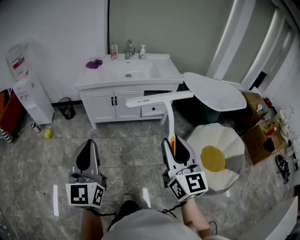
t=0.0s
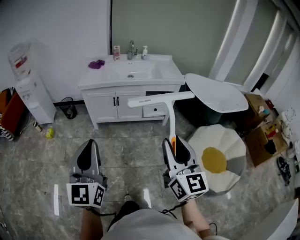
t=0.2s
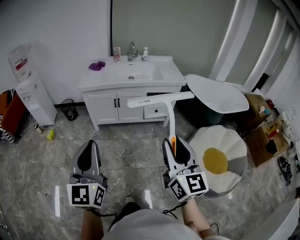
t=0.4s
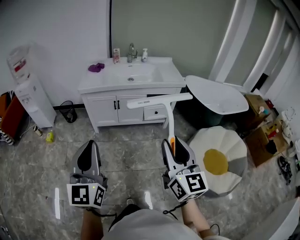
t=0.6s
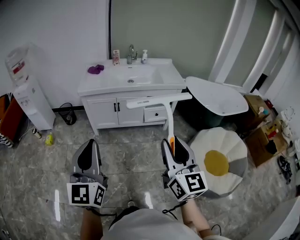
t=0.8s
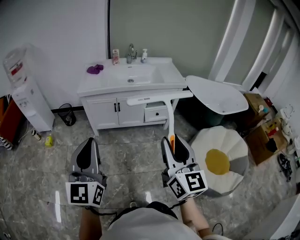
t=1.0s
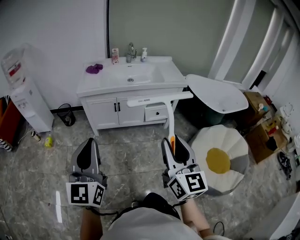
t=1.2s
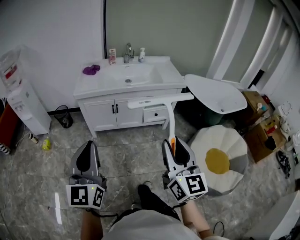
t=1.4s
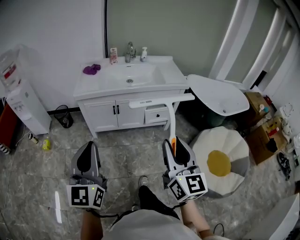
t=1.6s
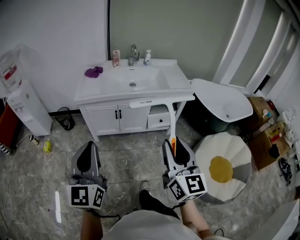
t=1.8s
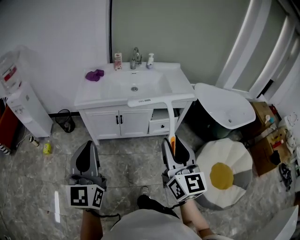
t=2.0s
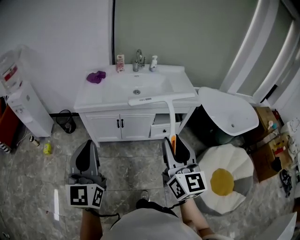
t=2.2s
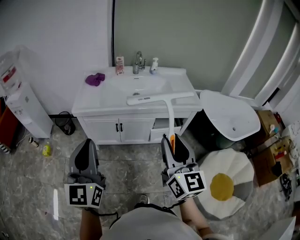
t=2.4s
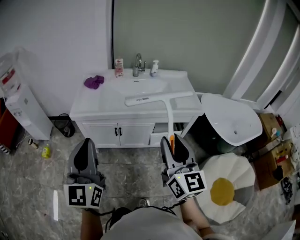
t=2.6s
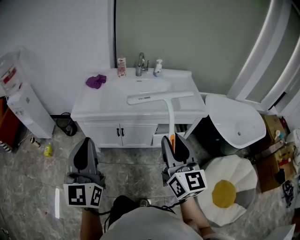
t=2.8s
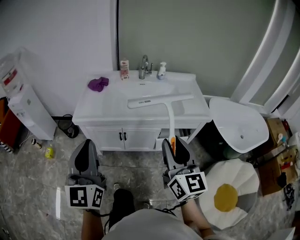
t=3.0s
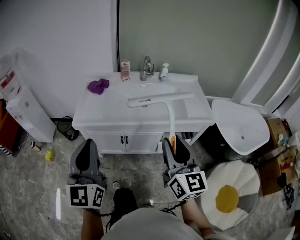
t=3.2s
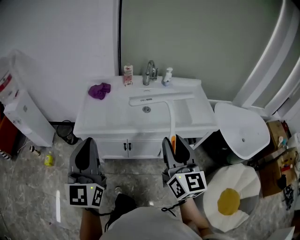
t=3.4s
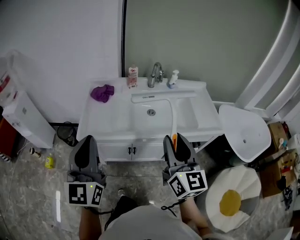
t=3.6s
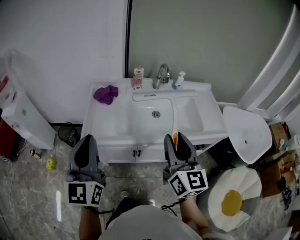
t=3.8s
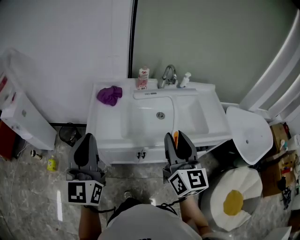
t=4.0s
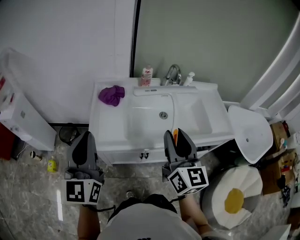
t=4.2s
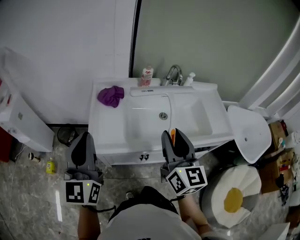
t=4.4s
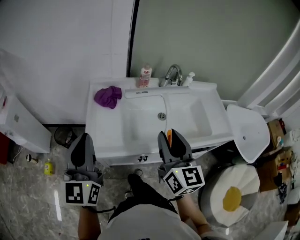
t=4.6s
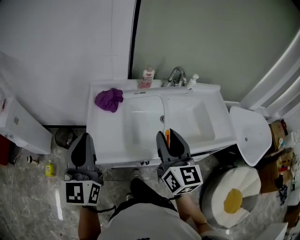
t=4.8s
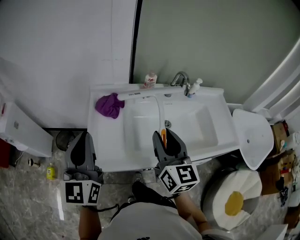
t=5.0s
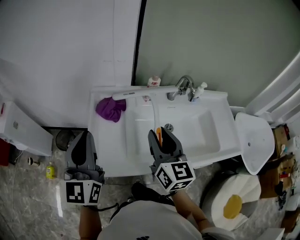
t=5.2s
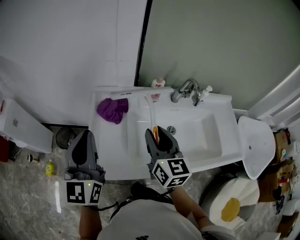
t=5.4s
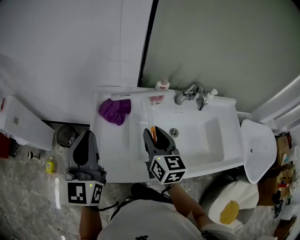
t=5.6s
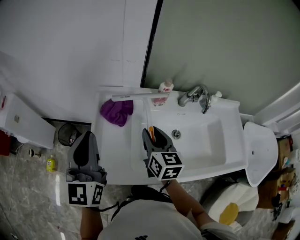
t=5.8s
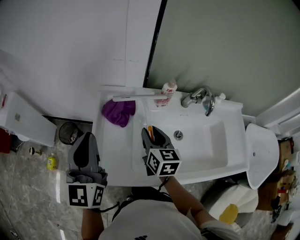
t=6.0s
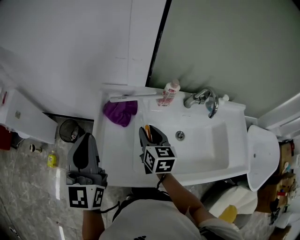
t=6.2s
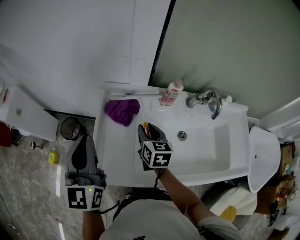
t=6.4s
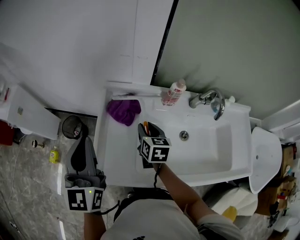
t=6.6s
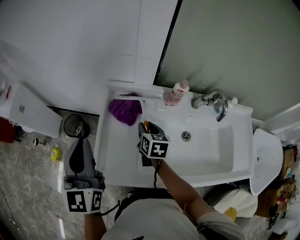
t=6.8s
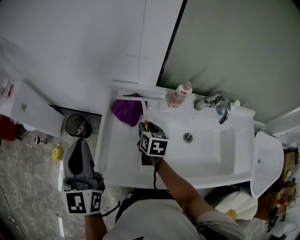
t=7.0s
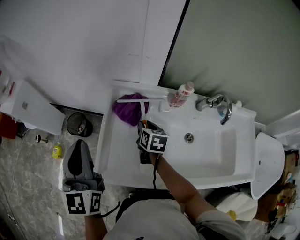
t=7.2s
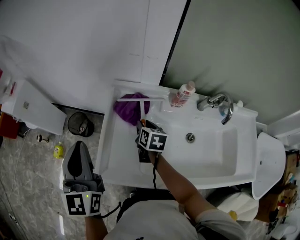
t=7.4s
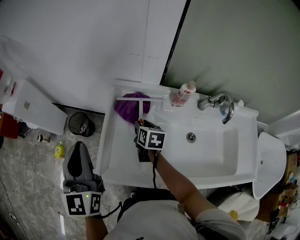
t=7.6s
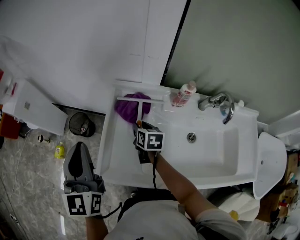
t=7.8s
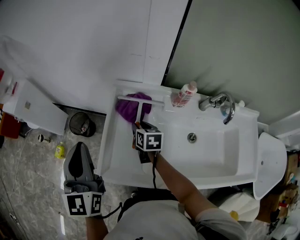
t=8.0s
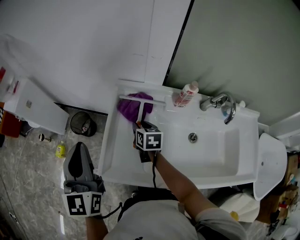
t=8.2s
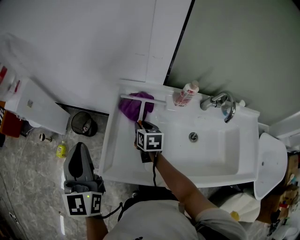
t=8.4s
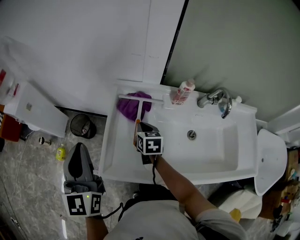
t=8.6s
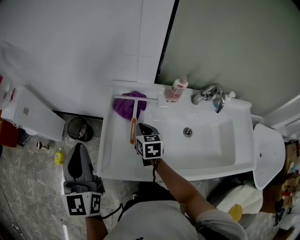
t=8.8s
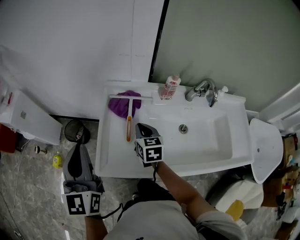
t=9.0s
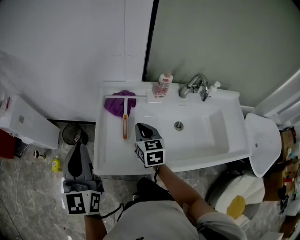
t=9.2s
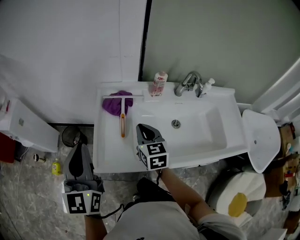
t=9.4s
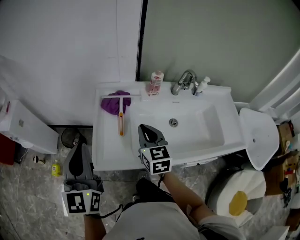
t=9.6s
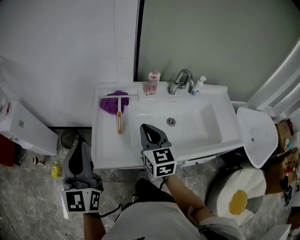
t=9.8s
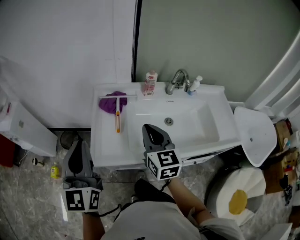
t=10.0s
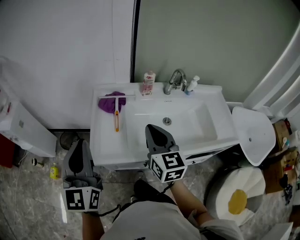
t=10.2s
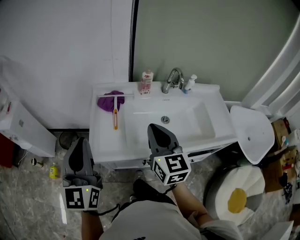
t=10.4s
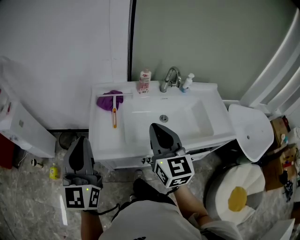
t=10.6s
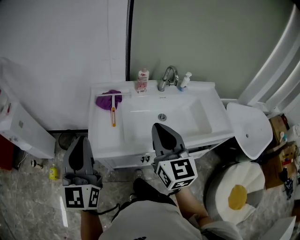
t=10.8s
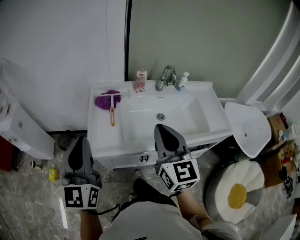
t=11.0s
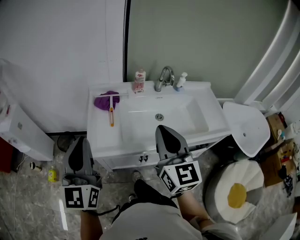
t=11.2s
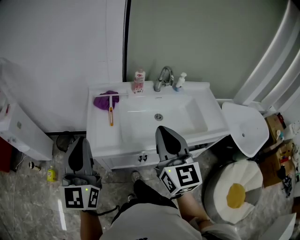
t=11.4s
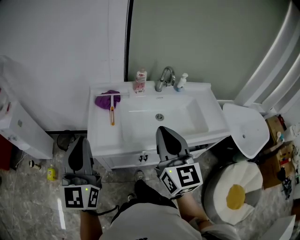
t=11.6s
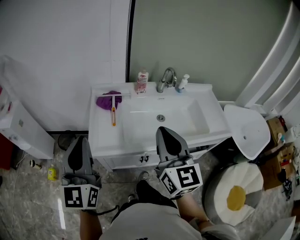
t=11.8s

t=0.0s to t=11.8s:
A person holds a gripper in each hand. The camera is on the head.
t=0.0s to t=1.4s: The two grippers go some 10 cm forward.
t=1.4s to t=3.0s: The grippers both shift forward by approximately 35 cm.
t=3.0s to t=4.4s: Both grippers move forward and to the left, approximately 30 cm.
t=4.4s to t=6.0s: The right gripper travels forward and downward by some 30 cm, and rotates approximately 30 degrees, while the left gripper travels forward by some 20 cm.
t=6.0s to t=7.4s: The left gripper moves to the left, some 5 cm, while the right gripper travels downward, forward and to the left by approximately 15 cm, and rotates approximately 20 degrees.
t=7.4s to t=8.8s: The right gripper shifts by about 5 cm, and closes.
t=8.8s to t=10.4s: The left gripper shifts roughly 15 cm backward and to the right; the right gripper goes approximately 30 cm upward and backward, and swivels roughly 30 degrees.
t=10.4s to t=11.8s: The left gripper shifts by about 5 cm. Meanwhile the right gripper is displaced backward and upward by approximately 10 cm.

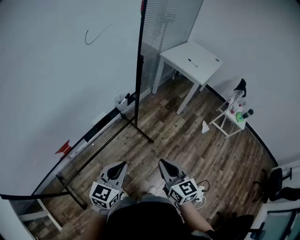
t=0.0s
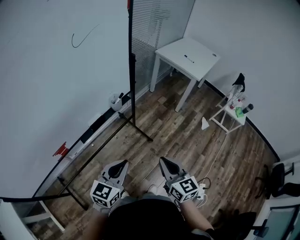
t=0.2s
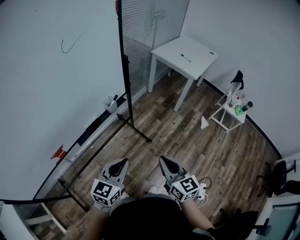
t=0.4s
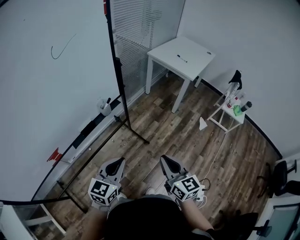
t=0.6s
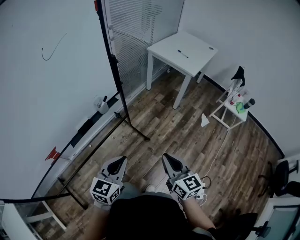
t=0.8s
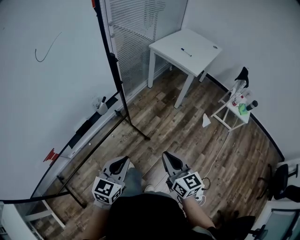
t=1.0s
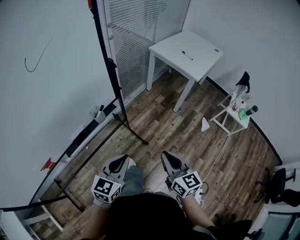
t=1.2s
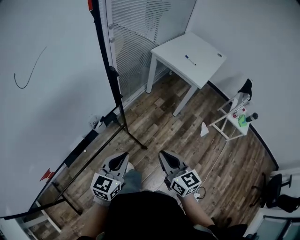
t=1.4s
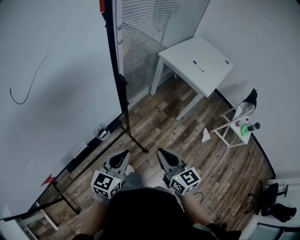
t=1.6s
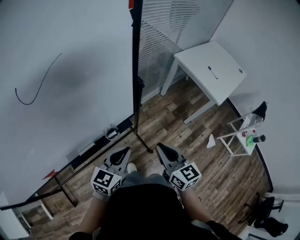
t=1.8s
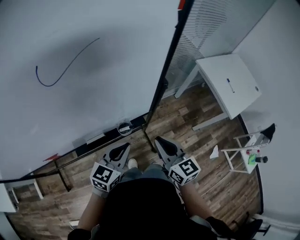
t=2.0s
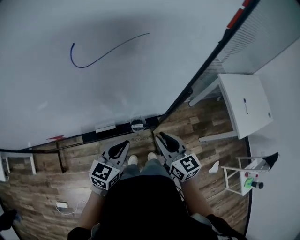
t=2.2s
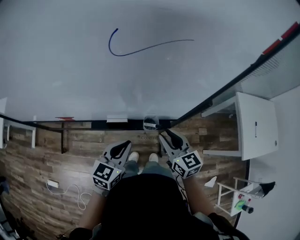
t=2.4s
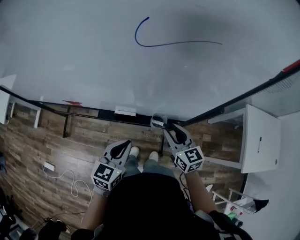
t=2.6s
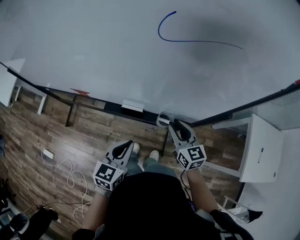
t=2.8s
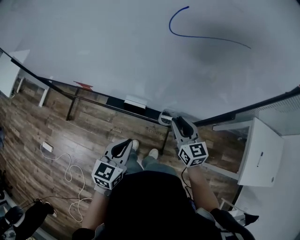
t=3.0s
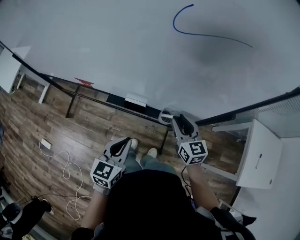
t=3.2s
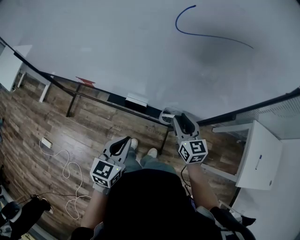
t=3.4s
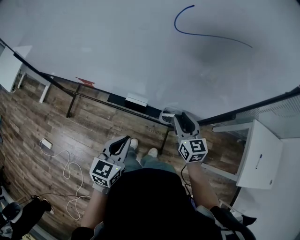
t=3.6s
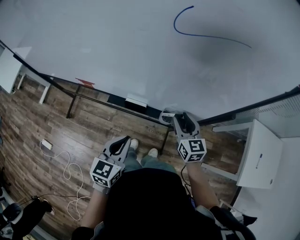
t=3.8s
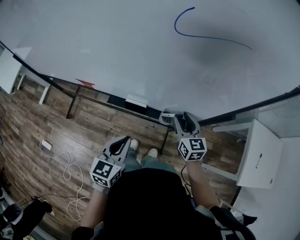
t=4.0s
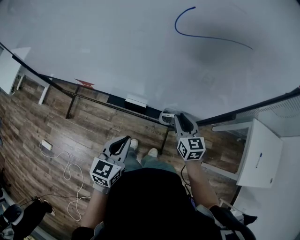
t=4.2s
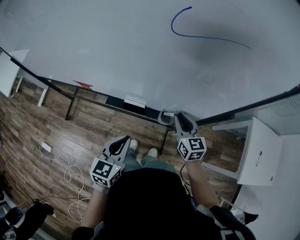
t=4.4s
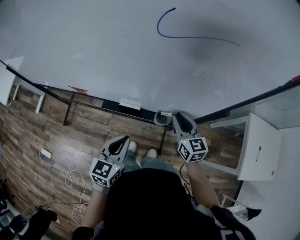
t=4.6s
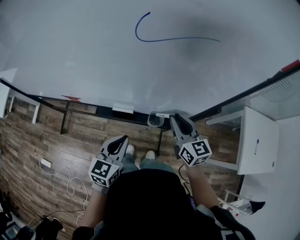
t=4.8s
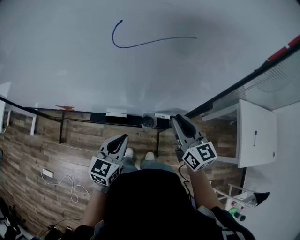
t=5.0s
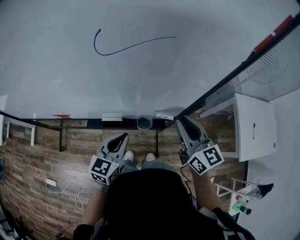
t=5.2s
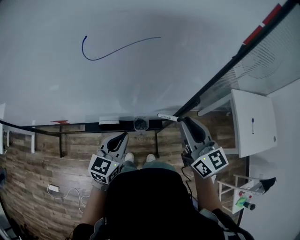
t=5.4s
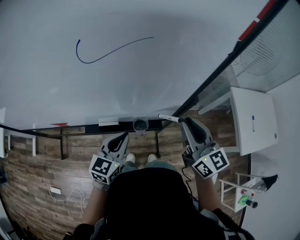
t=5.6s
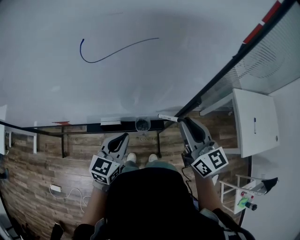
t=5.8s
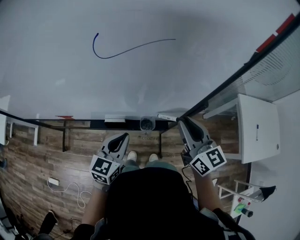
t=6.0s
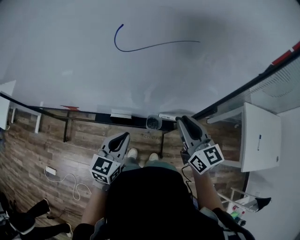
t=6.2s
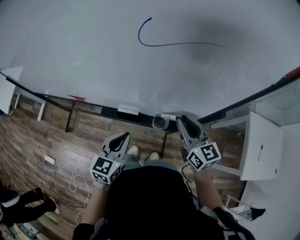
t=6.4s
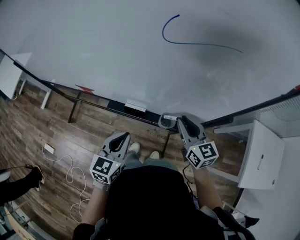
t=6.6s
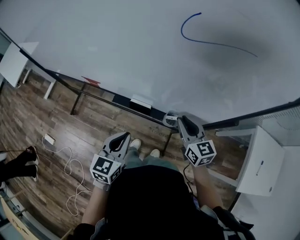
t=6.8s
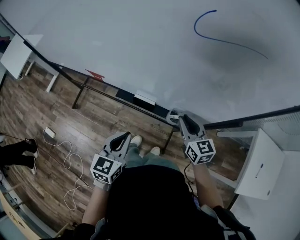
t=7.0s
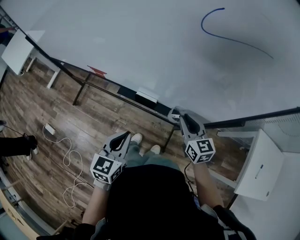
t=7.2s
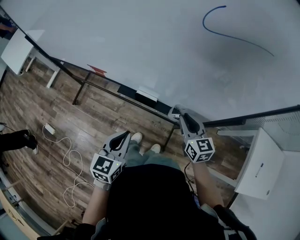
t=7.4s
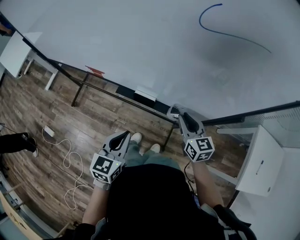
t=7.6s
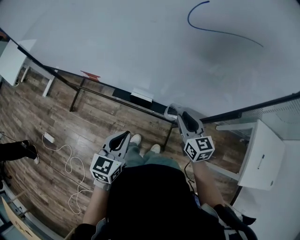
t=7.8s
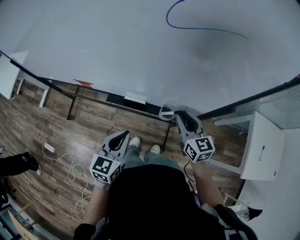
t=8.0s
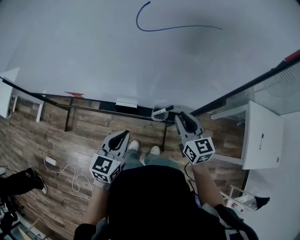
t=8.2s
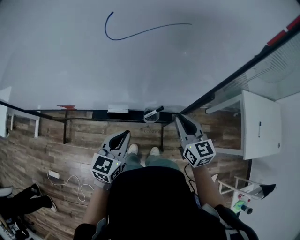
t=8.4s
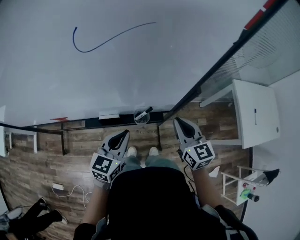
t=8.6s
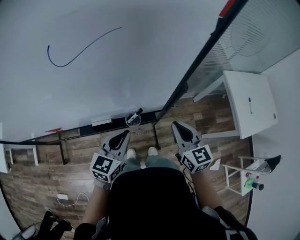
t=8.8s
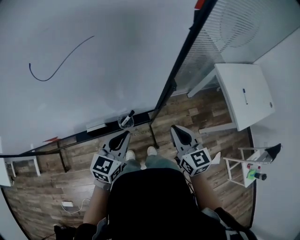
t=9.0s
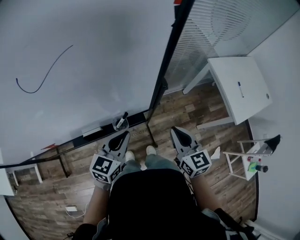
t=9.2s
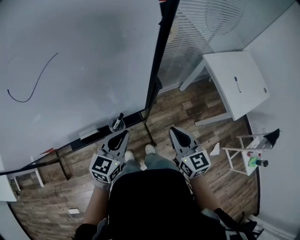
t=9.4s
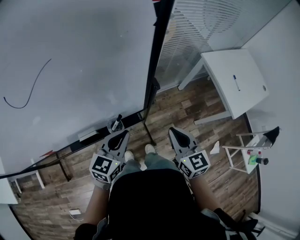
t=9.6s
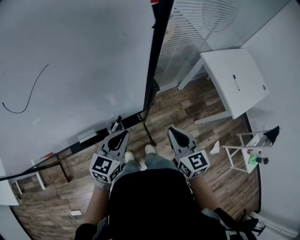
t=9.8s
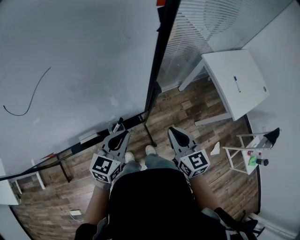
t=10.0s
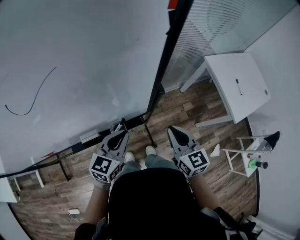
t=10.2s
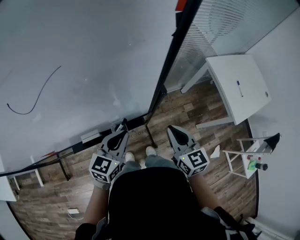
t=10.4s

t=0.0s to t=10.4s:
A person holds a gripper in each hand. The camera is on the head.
t=0.0s to t=1.4s: The two grippers go some 25 cm forward and to the right.
t=1.4s to t=3.0s: The right gripper moves approximately 35 cm, turns by approximately 60 degrees, and opens its fingers, while the left gripper shifts by roughly 15 cm, and turns by about 60 degrees.
t=3.0s to t=4.4s: There are only small adjustments of the grippers.
t=4.4s to t=6.0s: The left gripper travels forward and to the right by some 10 cm, while the right gripper heads upward and to the right, covering some 15 cm.
t=6.0s to t=7.4s: The right gripper heads downward and to the left, covering approximately 20 cm, and changes its angle by roughly 20 degrees. Meanwhile the left gripper moves to the left and backward, some 15 cm, and rotates approximately 20 degrees.
t=7.4s to t=9.0s: The right gripper ends up about 20 cm from where it was, and swivels some 30 degrees, while the left gripper changes place by about 20 cm, and changes its angle by some 40 degrees.
t=9.0s to t=10.4s: There are only small adjustments of the grippers.

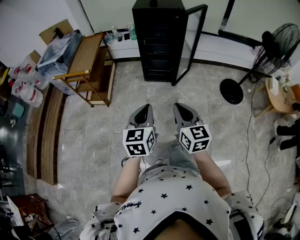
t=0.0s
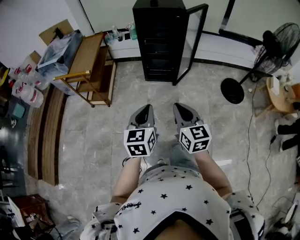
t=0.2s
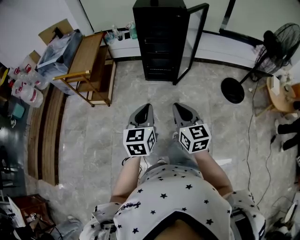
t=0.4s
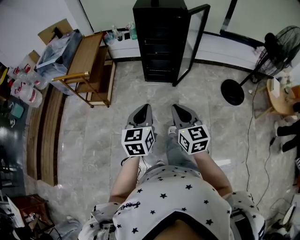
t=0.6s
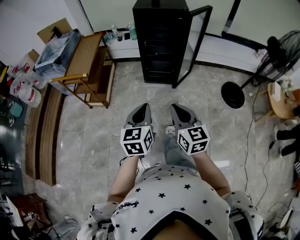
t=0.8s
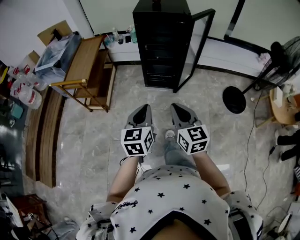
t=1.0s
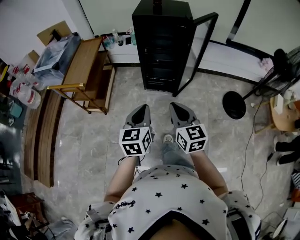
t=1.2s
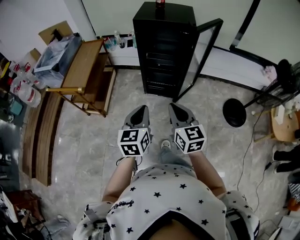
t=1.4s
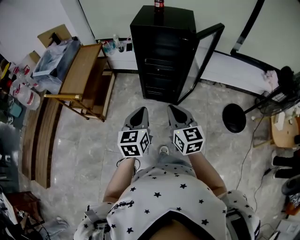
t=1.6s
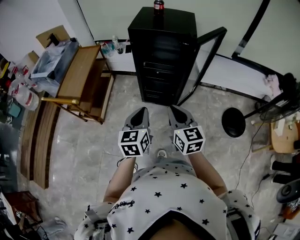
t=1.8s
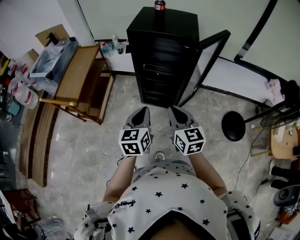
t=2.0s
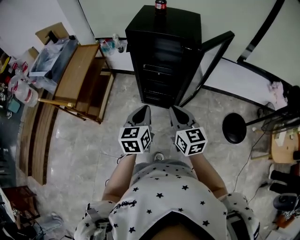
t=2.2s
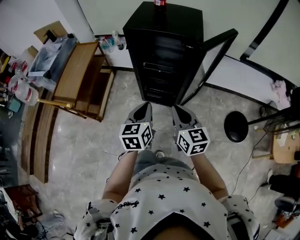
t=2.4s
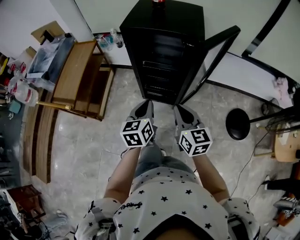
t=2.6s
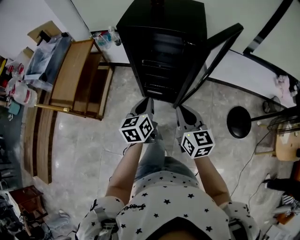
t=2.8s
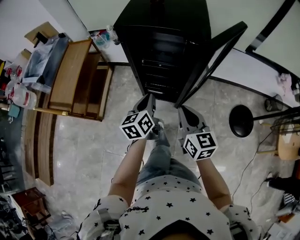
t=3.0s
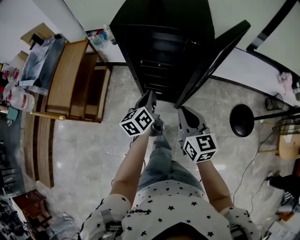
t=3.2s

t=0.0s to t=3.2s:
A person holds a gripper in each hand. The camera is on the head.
t=0.0s to t=1.6s: The grippers both shift forward by roughly 30 cm.
t=1.6s to t=3.2s: The right gripper shifts approximately 20 cm forward and to the right. Meanwhile the left gripper moves forward and downward, roughly 30 cm, and changes its angle by roughly 30 degrees.
